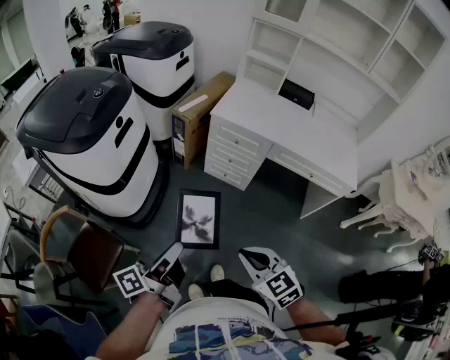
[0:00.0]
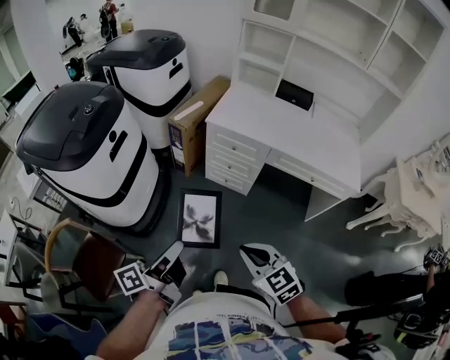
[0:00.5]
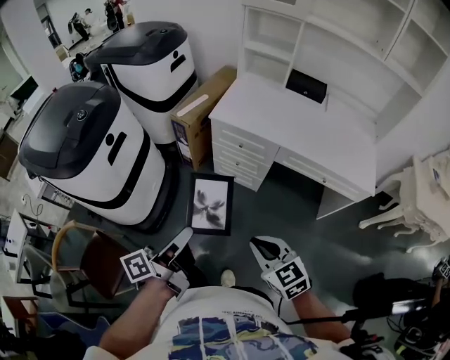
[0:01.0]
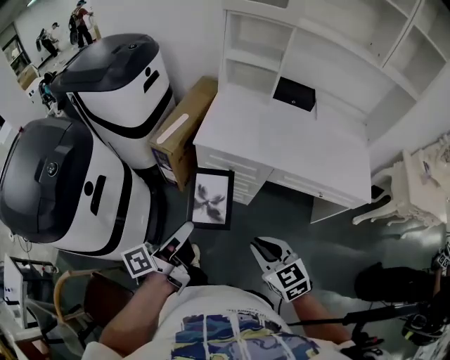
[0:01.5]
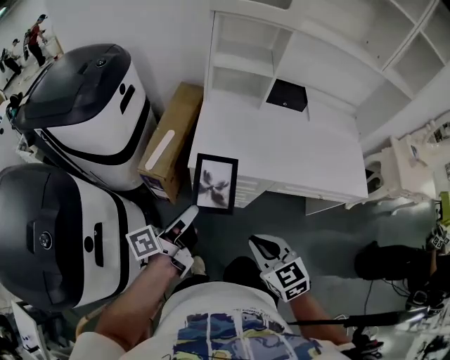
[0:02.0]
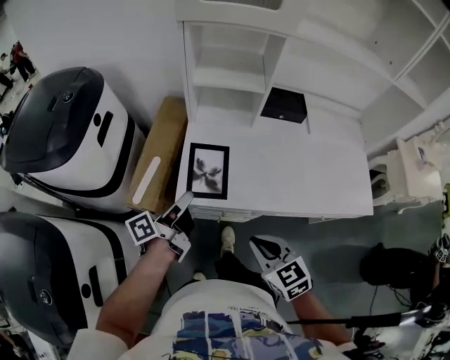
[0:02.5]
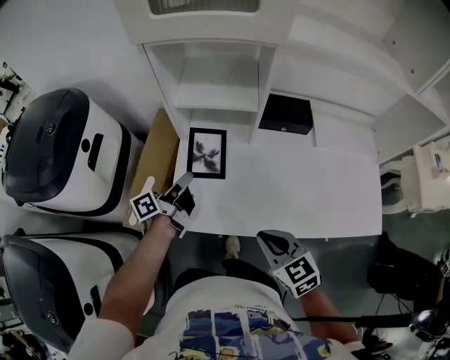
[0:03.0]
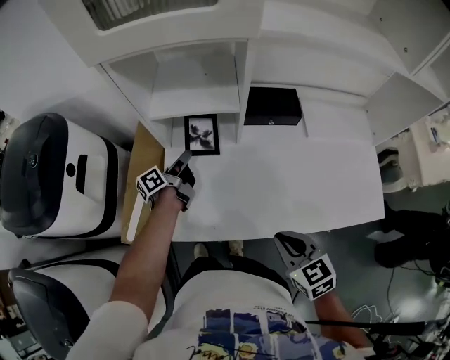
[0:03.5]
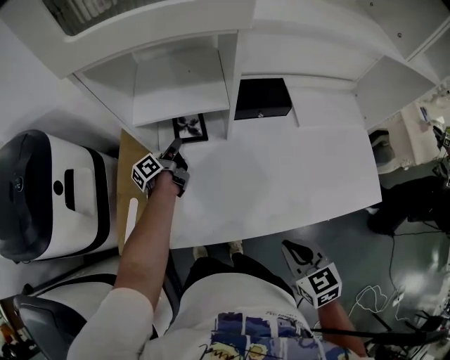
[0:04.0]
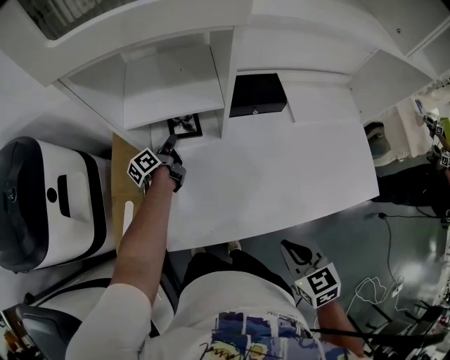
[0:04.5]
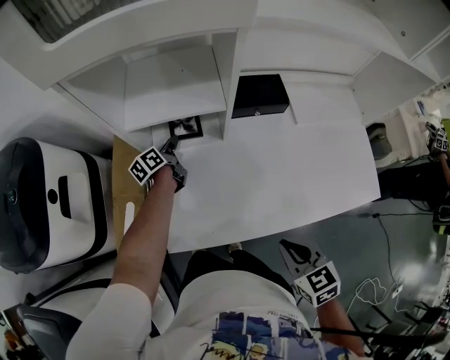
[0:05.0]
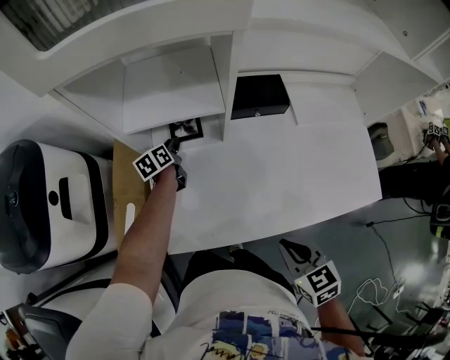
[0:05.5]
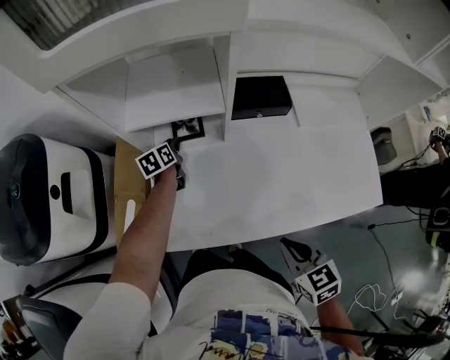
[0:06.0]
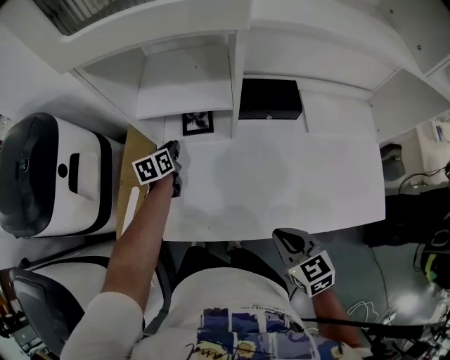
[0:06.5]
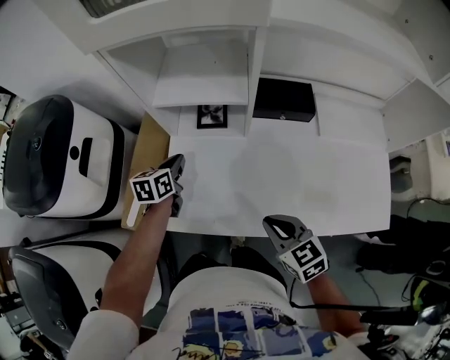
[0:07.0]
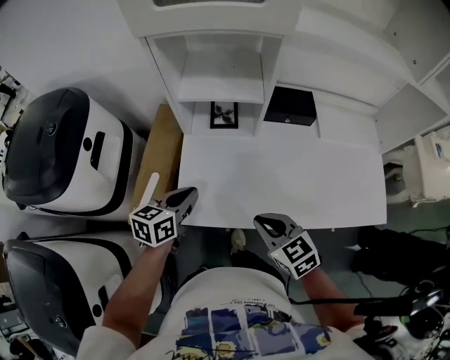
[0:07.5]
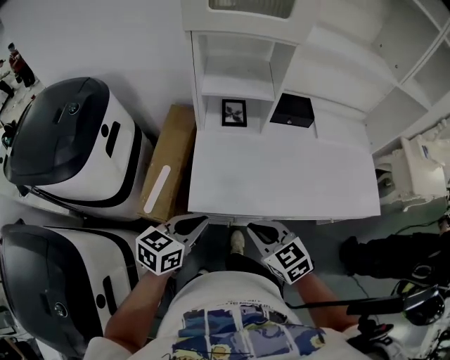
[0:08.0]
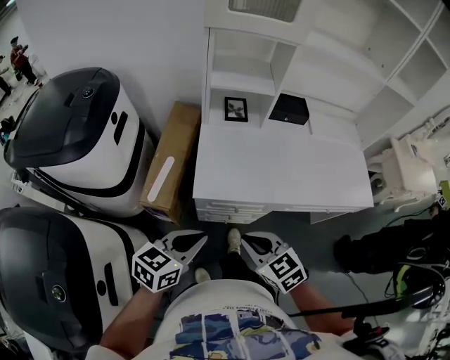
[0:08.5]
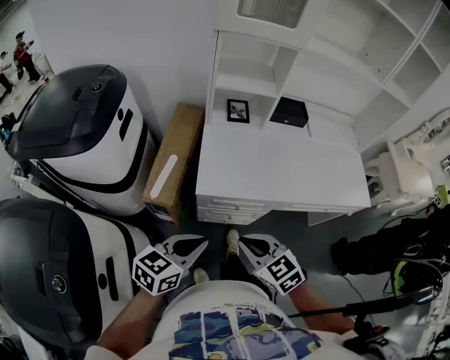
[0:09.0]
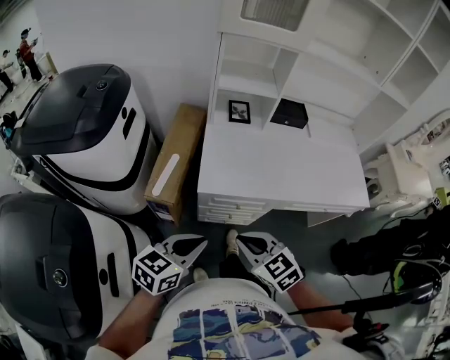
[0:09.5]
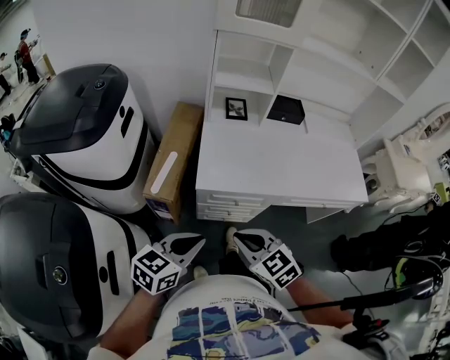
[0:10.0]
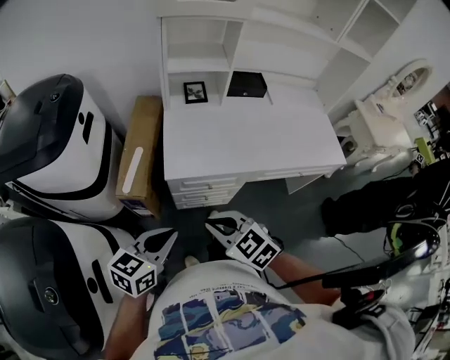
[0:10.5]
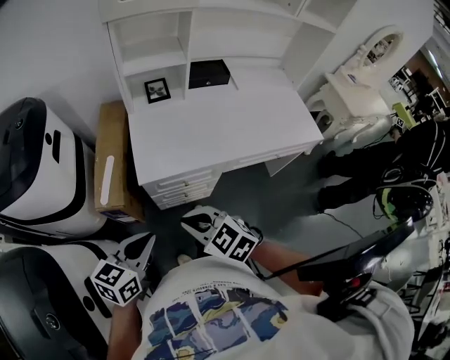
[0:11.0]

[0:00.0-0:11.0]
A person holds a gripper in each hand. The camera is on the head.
0:00.0 to 0:02.0: The grippers both shift forward by approximately 40 cm. The left gripper turns by some 20 degrees. Meanwhile the right gripper changes its angle by roughly 20 degrees.
0:02.0 to 0:03.5: The left gripper is displaced forward by some 50 cm; the right gripper heads forward and to the right, covering approximately 30 cm.
0:03.5 to 0:05.5: The left gripper travels forward and downward by about 15 cm, and turns by some 40 degrees.
0:05.5 to 0:07.5: The right gripper heads to the left, covering approximately 10 cm, and rotates roughly 20 degrees, while the left gripper shifts roughly 30 cm backward and upward, changes its angle by approximately 30 degrees, and closes up.
0:07.5 to 0:09.0: The left gripper goes approximately 30 cm backward. Meanwhile the right gripper travels backward and to the left by about 25 cm.
0:09.0 to 0:11.0: The grippers make only small movements.

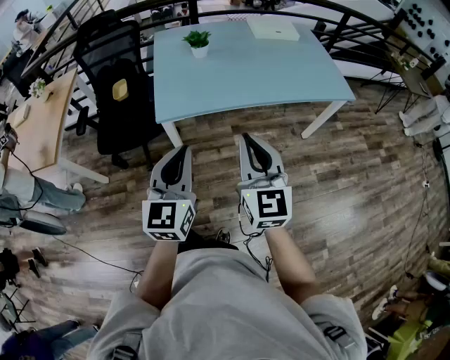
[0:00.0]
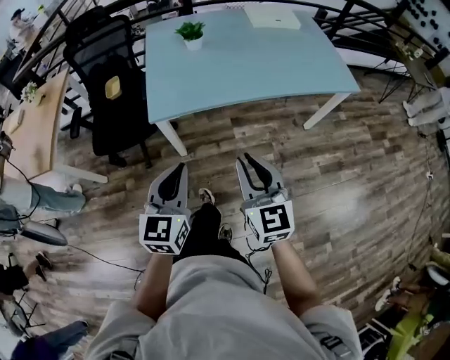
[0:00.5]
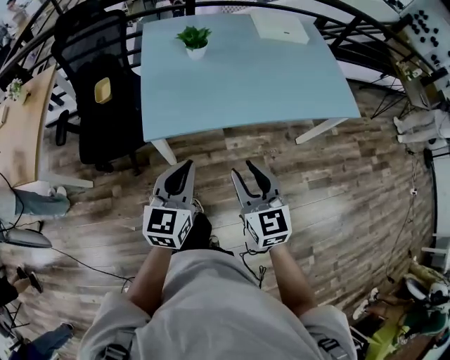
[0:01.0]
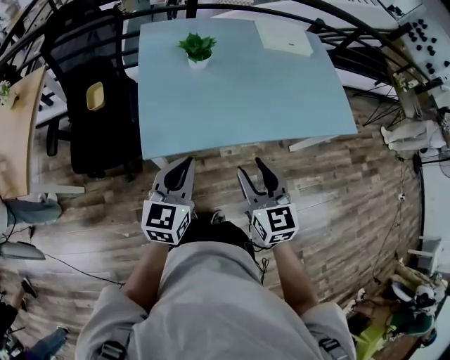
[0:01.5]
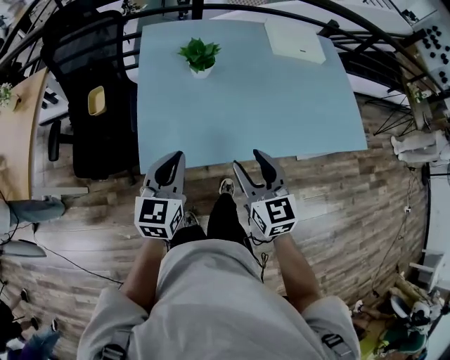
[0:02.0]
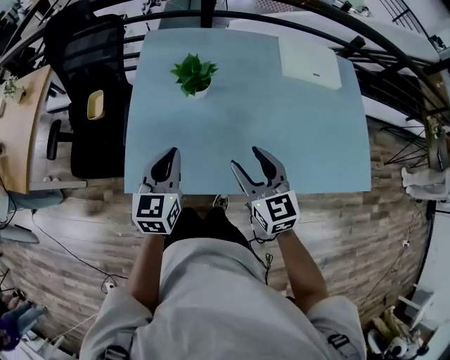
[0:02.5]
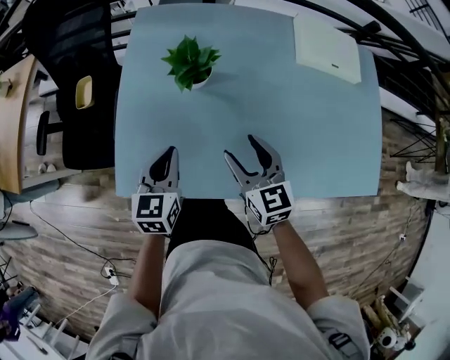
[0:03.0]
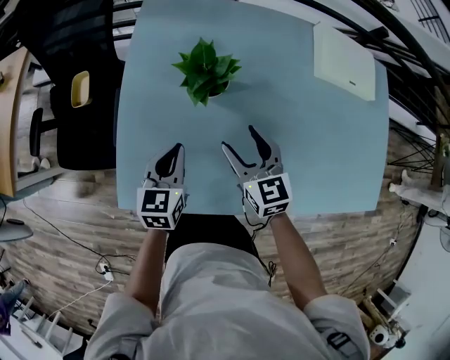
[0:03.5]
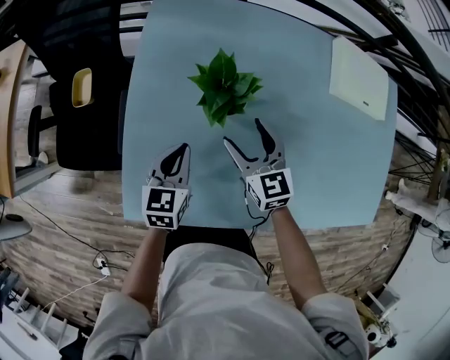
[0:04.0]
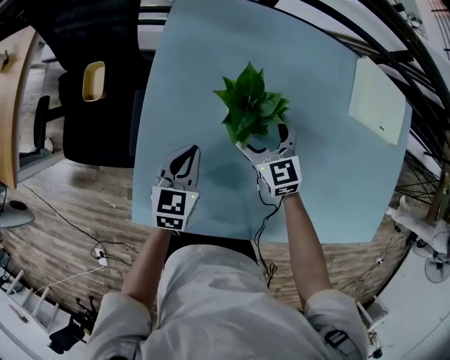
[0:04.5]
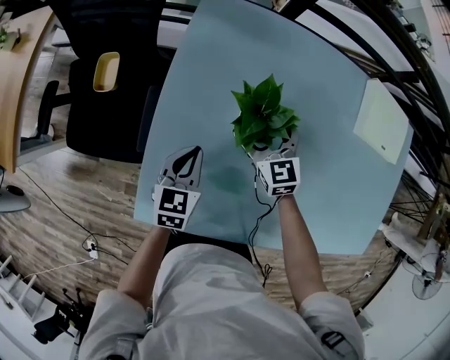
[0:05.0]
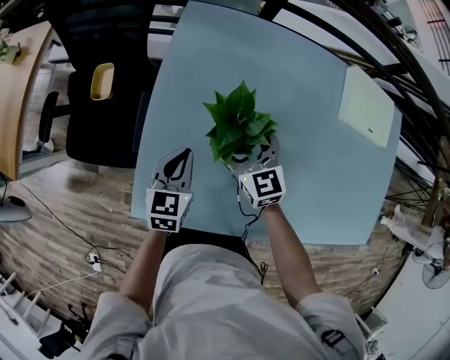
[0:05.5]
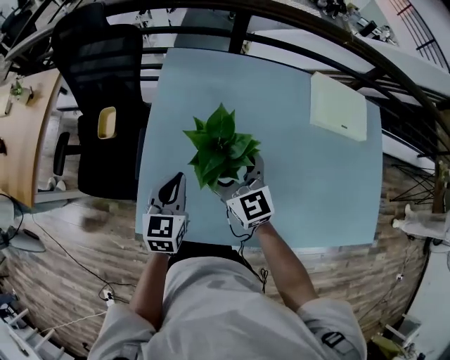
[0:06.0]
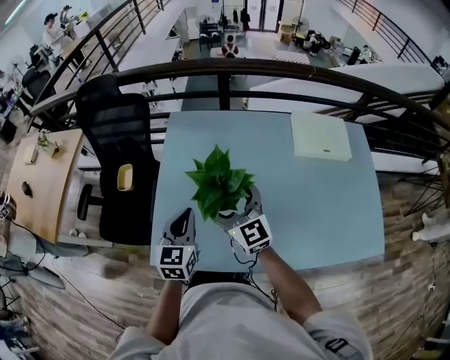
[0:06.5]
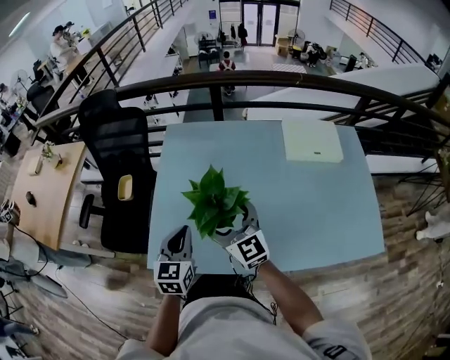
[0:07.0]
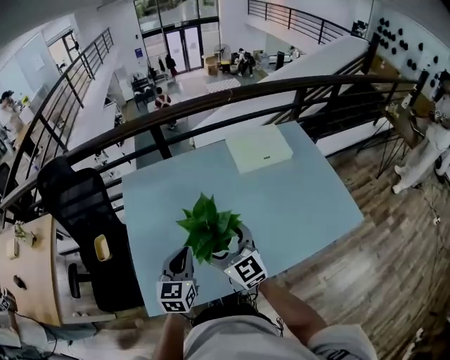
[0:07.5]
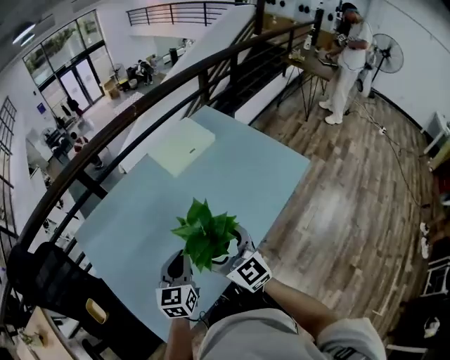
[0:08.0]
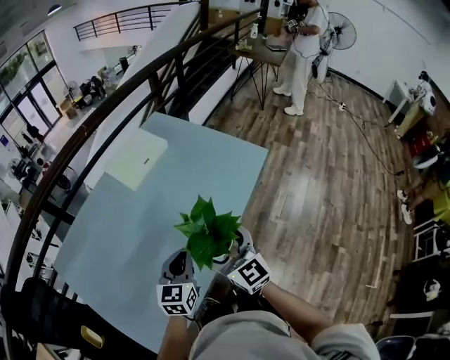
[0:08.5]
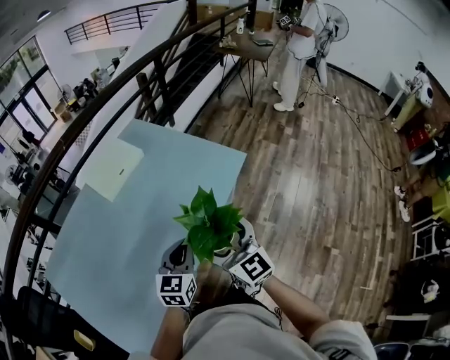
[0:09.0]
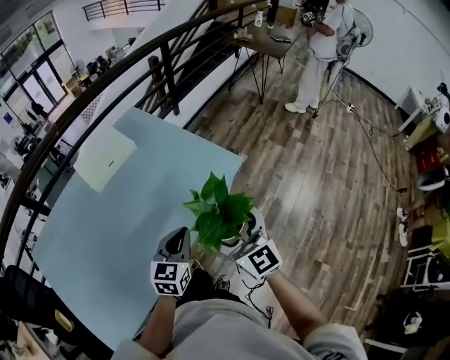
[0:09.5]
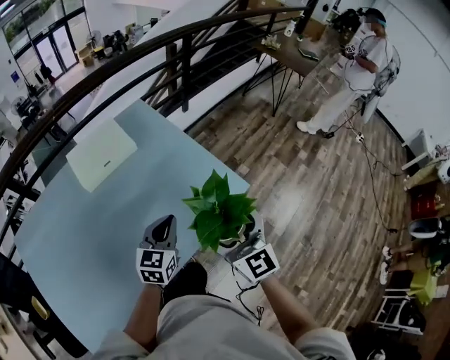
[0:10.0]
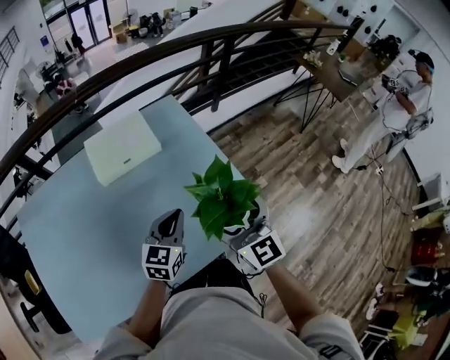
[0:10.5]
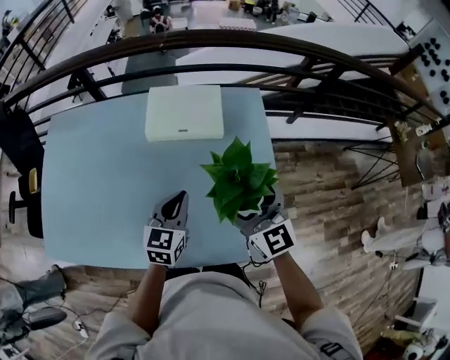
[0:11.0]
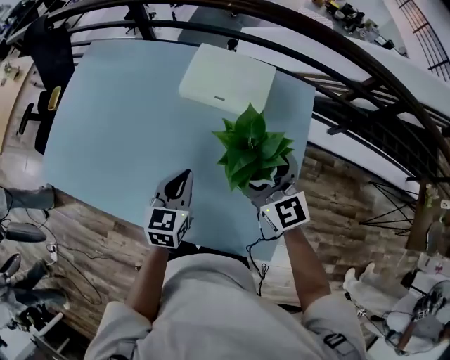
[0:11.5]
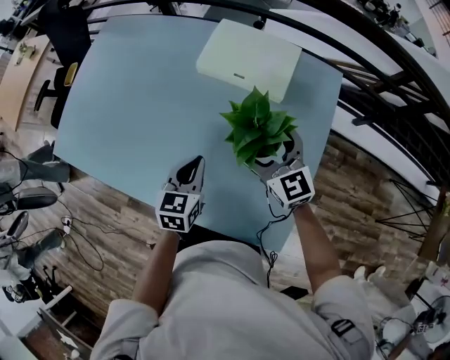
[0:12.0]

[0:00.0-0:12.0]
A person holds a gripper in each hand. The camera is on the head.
0:00.0 to 0:02.0: The right gripper goes some 30 cm forward and downward, changes its angle by some 20 degrees, and opens; the left gripper travels forward by about 30 cm.
0:02.0 to 0:04.0: Both grippers move forward and downward, roughly 35 cm. The left gripper swivels about 20 degrees.
0:04.0 to 0:06.0: The right gripper is displaced upward and to the left by some 15 cm, and rotates some 20 degrees. Meanwhile the left gripper travels upward by approximately 10 cm.
0:06.0 to 0:08.0: The right gripper changes place by roughly 25 cm, and turns by about 40 degrees. Meanwhile the left gripper shifts by about 25 cm, and changes its angle by roughly 40 degrees.
0:08.0 to 0:10.0: Both grippers are carried to the right and forward, about 40 cm.
0:10.0 to 0:12.0: The left gripper shifts by about 15 cm, and changes its angle by some 70 degrees. The right gripper moves some 35 cm, and turns by approximately 70 degrees.

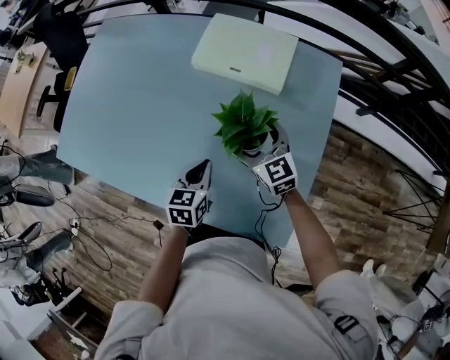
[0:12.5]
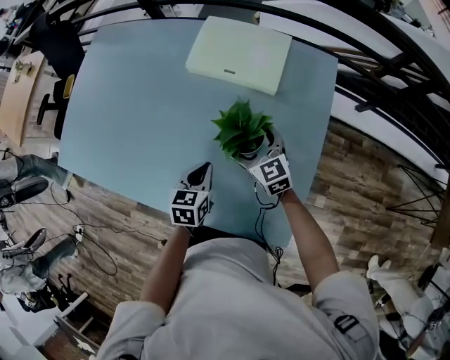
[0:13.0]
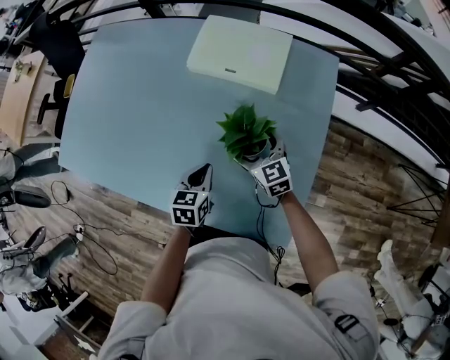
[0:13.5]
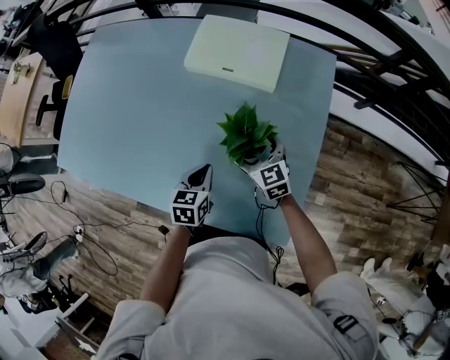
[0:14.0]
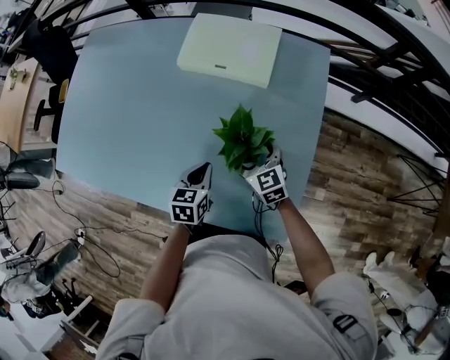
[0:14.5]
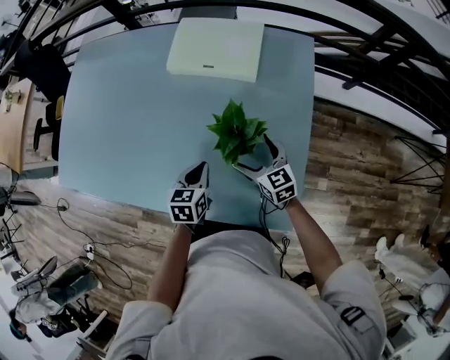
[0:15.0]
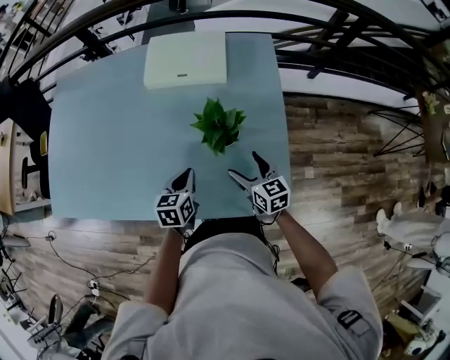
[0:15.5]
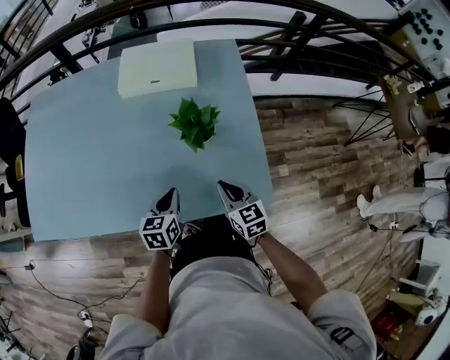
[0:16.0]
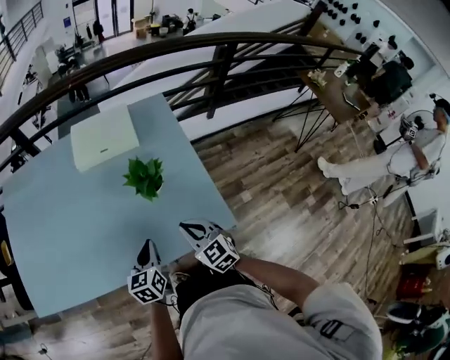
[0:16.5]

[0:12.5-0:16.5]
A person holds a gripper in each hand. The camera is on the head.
0:12.5 to 0:14.5: The right gripper moves downward and backward, about 10 cm.
0:14.5 to 0:16.5: The right gripper travels backward and upward by roughly 20 cm, turns by roughly 30 degrees, and closes its fingers, while the left gripper moves backward and upward, roughly 15 cm, and rotates roughly 20 degrees.
